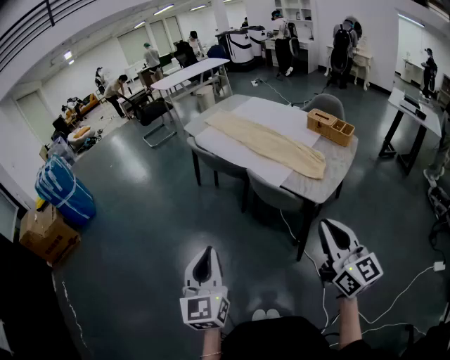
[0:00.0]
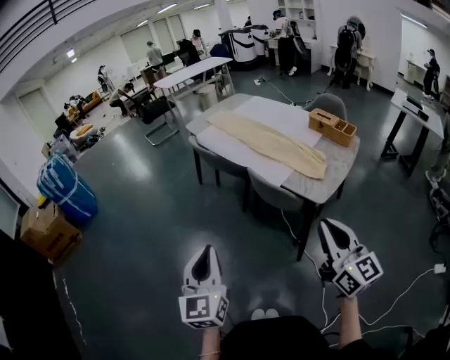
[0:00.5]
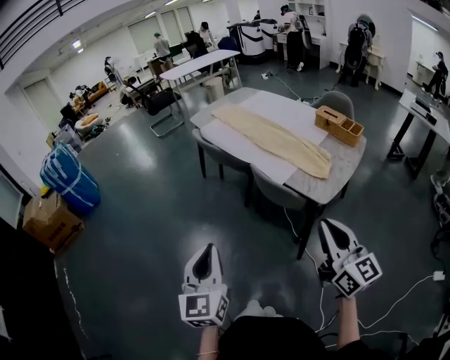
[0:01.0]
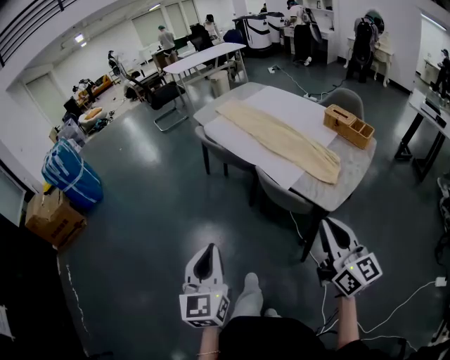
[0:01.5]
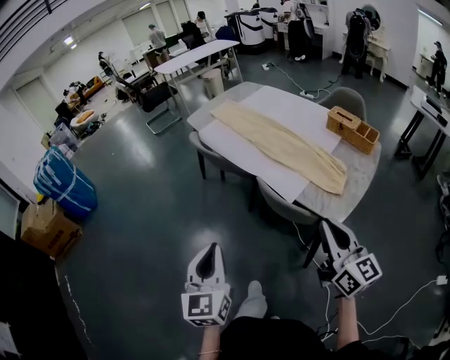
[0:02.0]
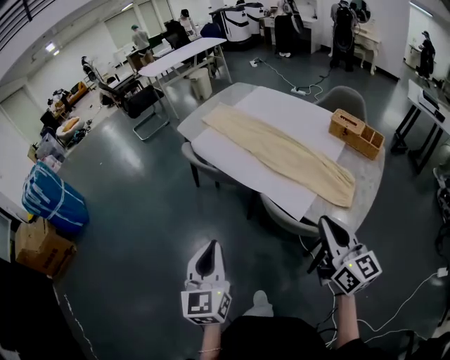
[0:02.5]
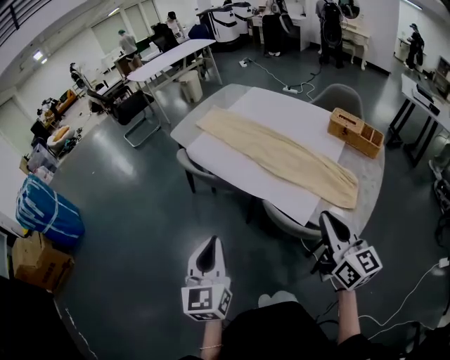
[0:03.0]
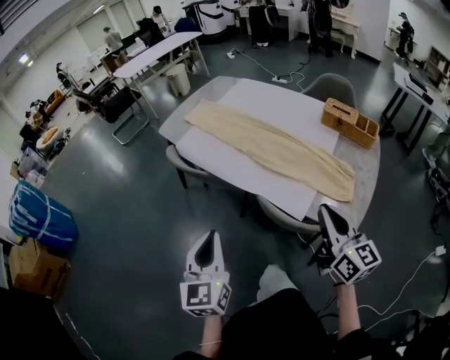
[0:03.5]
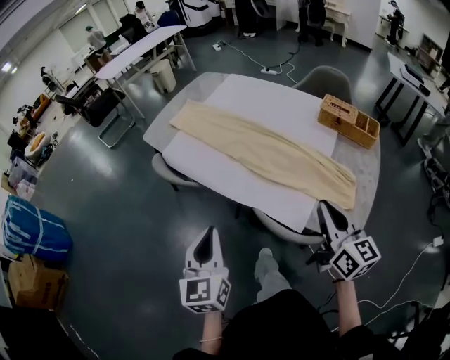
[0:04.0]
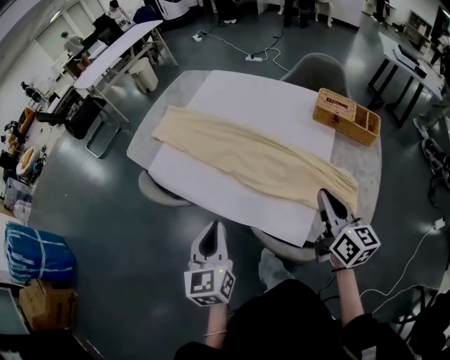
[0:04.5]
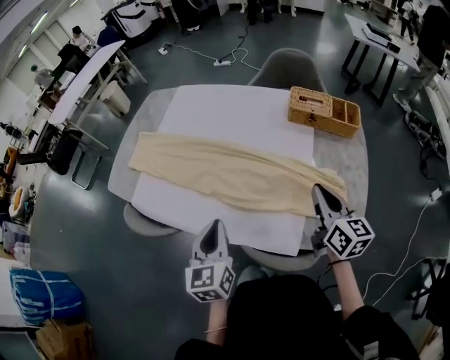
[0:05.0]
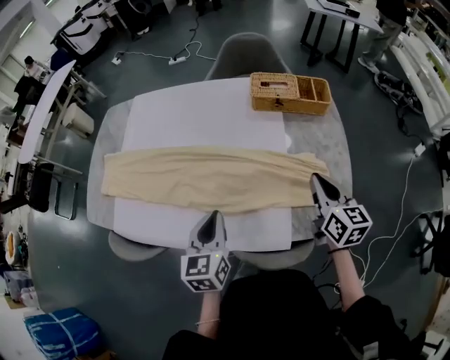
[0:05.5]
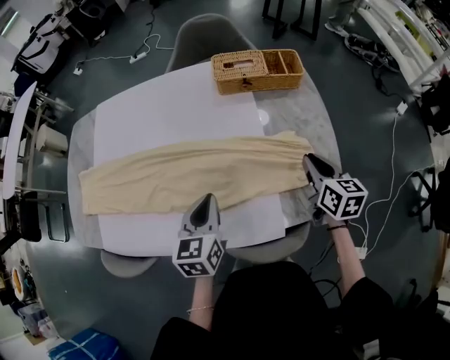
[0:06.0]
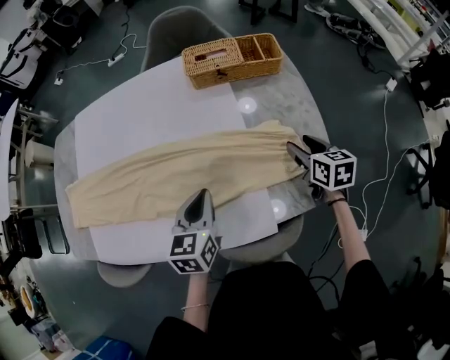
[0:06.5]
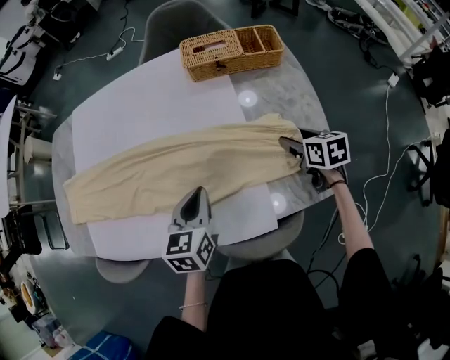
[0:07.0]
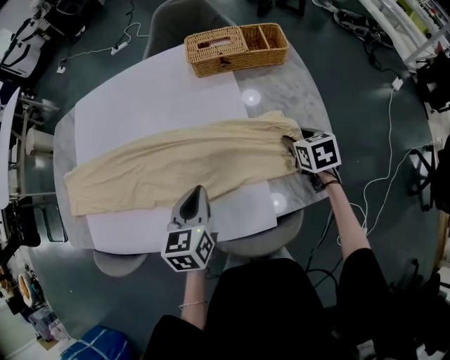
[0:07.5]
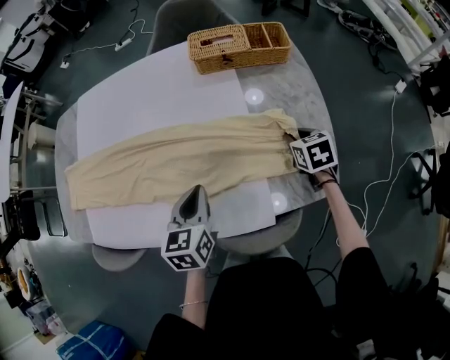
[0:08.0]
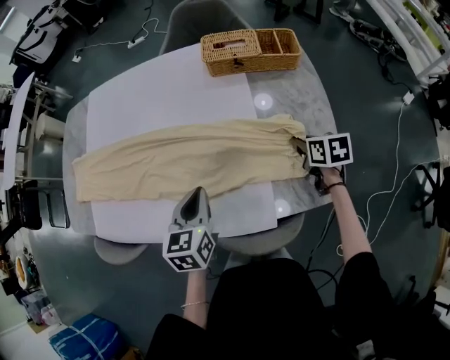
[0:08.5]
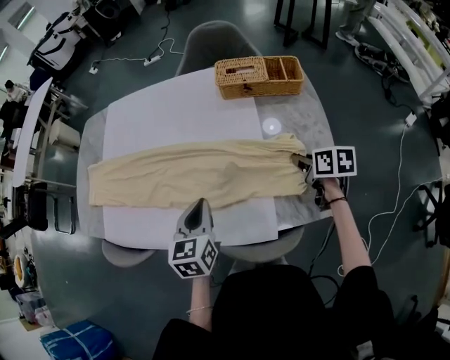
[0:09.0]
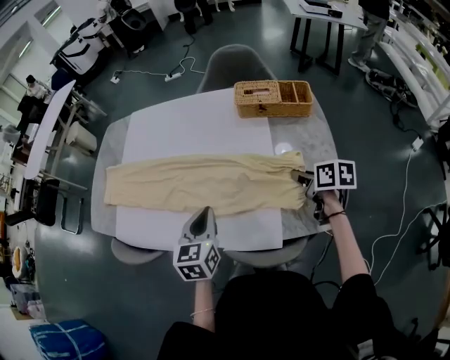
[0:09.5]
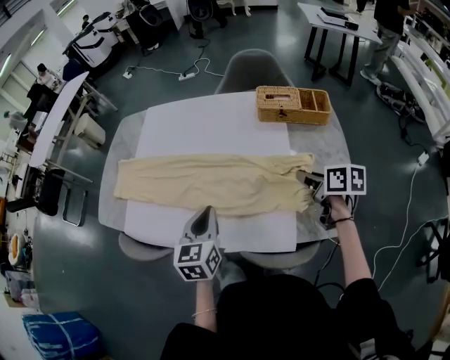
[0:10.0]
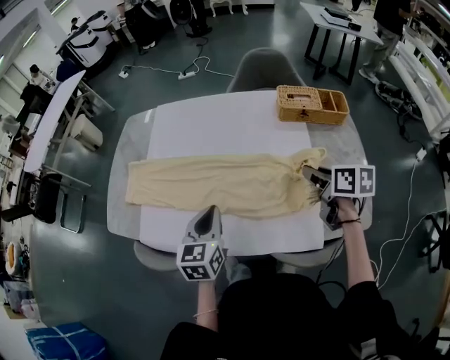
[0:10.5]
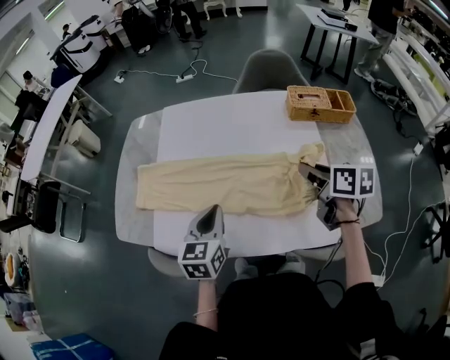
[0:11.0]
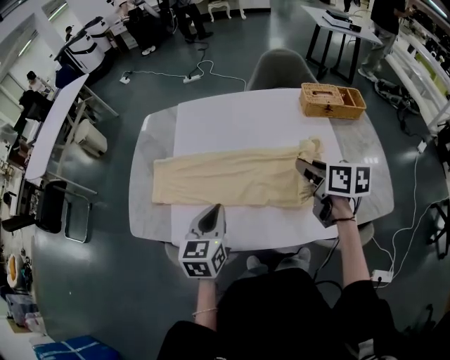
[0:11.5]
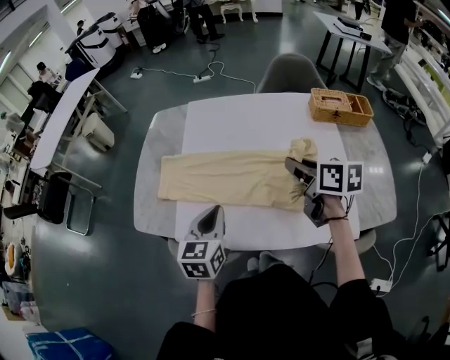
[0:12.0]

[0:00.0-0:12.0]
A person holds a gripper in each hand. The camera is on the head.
0:00.0 to 0:02.0: Both grippers travel together forward, about 15 cm.
0:02.0 to 0:04.0: The grippers both shift forward by roughly 25 cm.
0:04.0 to 0:06.0: The right gripper moves some 25 cm, and swivels about 50 degrees; the left gripper moves approximately 35 cm, and rotates approximately 50 degrees.
0:06.0 to 0:08.0: The right gripper shifts about 10 cm downward, rotates roughly 30 degrees, and opens, then closes once more.
0:08.0 to 0:10.0: The left gripper goes roughly 15 cm to the left and upward; the right gripper travels upward and to the left by roughly 20 cm, and turns by about 40 degrees.
0:10.0 to 0:12.0: Both grippers travel together to the left, some 30 cm.

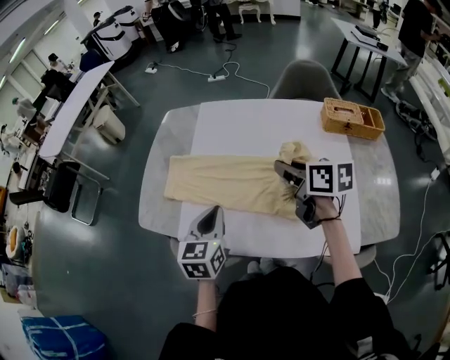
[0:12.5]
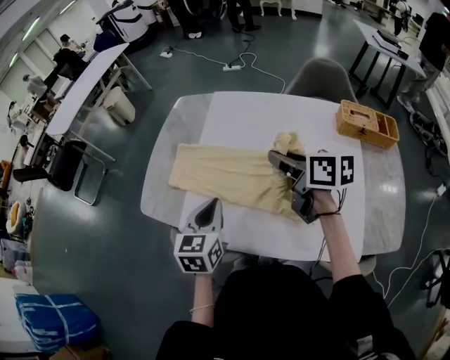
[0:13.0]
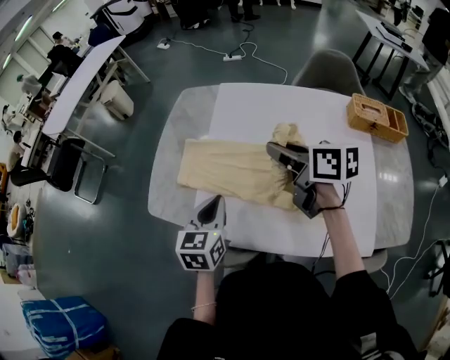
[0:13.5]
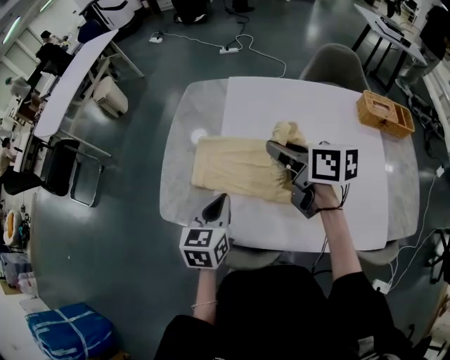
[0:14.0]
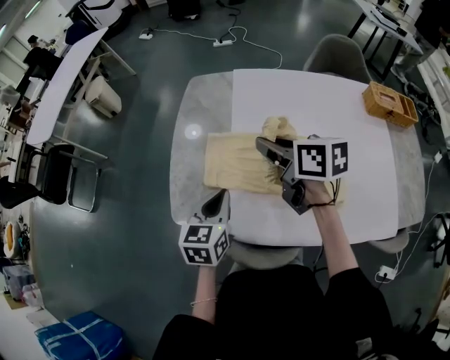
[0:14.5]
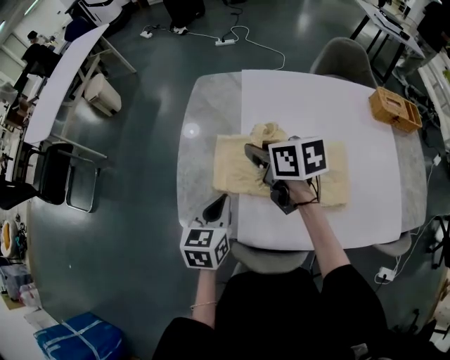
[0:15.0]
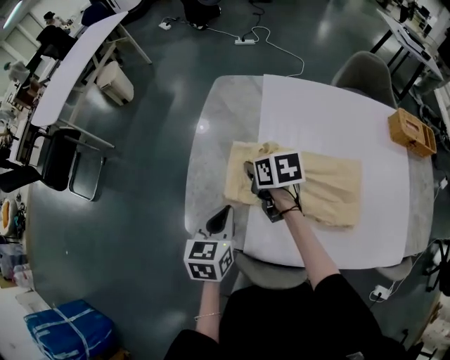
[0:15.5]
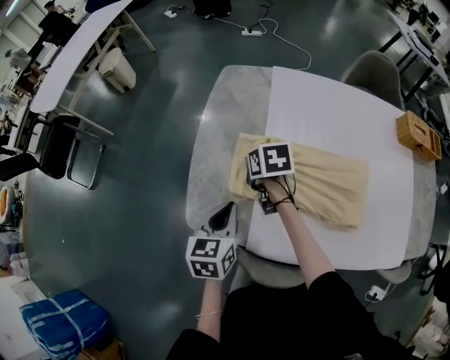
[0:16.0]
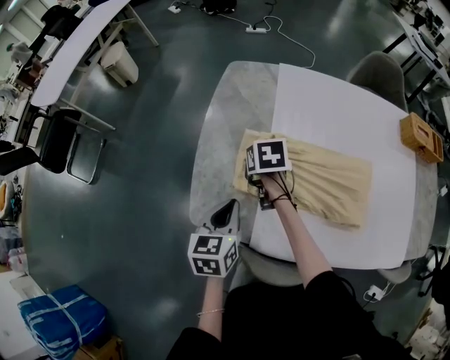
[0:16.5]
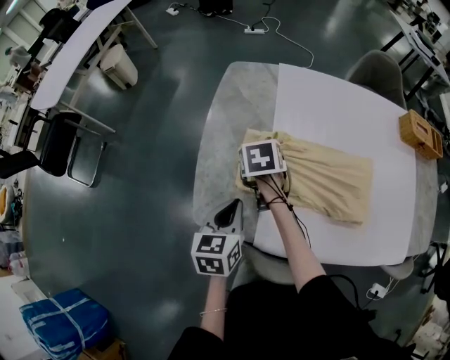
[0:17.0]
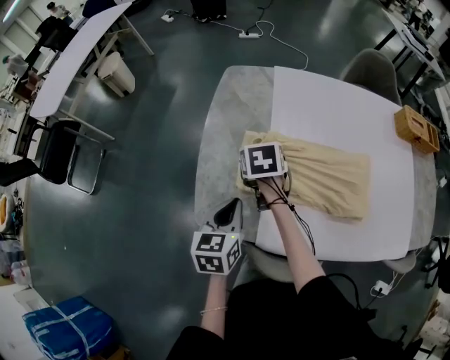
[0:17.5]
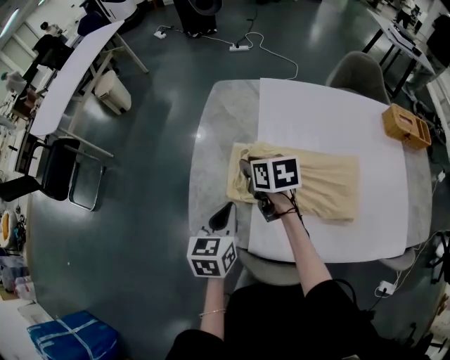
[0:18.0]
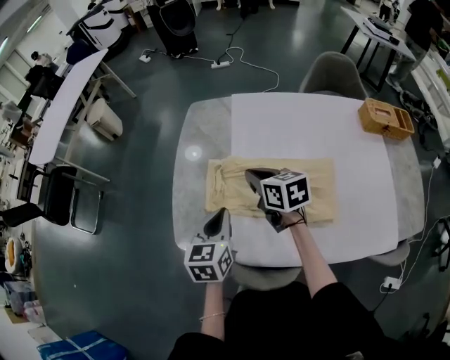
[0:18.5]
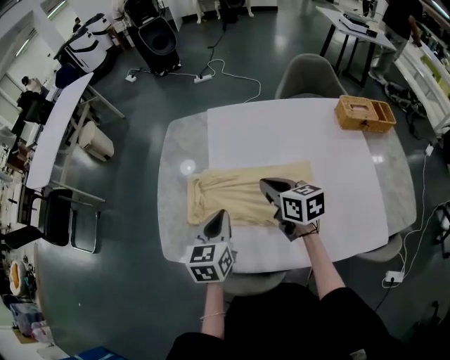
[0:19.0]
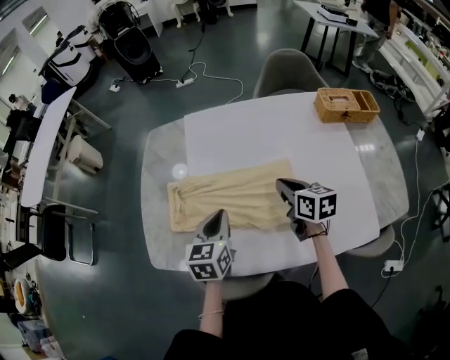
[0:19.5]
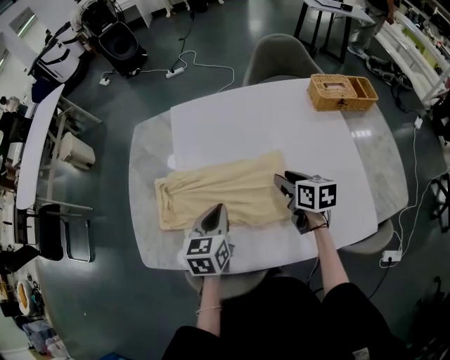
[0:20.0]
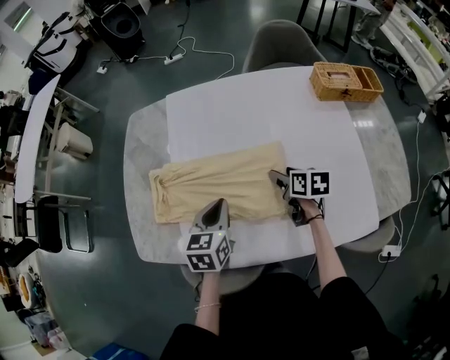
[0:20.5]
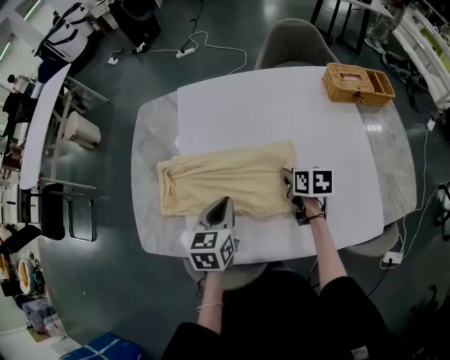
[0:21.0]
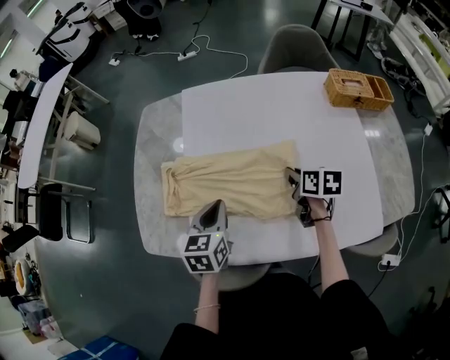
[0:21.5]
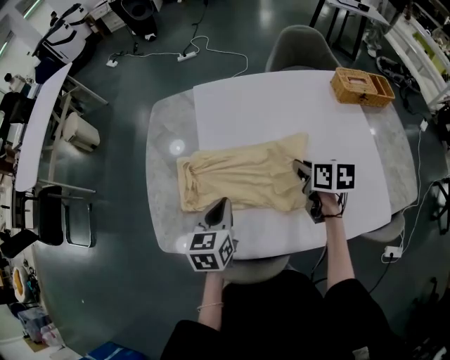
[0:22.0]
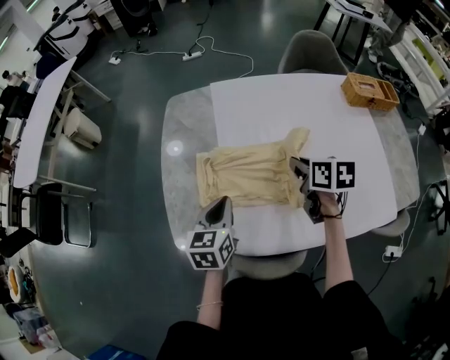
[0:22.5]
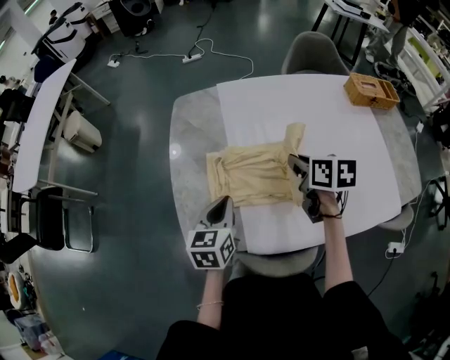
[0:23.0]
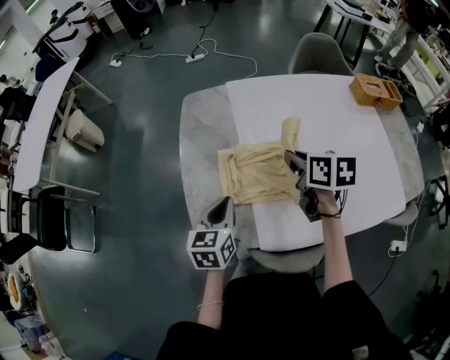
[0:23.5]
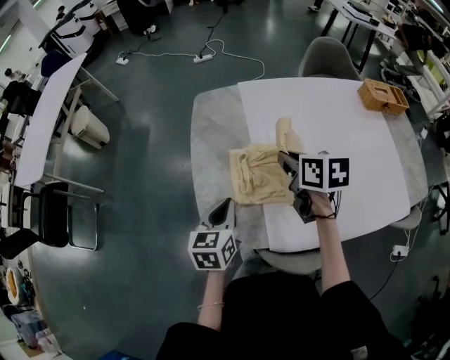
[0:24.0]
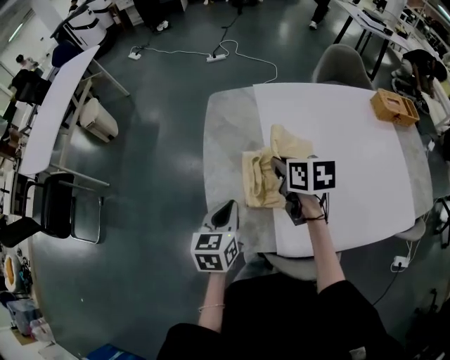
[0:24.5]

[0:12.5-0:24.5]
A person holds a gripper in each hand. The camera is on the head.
0:12.5 to 0:14.5: The grippers both shift to the left and forward by about 25 cm.
0:14.5 to 0:16.5: The right gripper heads downward, to the left and forward, covering approximately 25 cm, and angles its fingers downward, by approximately 40 degrees. The left gripper moves to the left and downward, some 10 cm.
0:16.5 to 0:18.5: The right gripper heads upward and to the right, covering about 15 cm, rotates about 30 degrees, and opens, then closes again. Meanwhile the left gripper heads to the right and upward, covering some 10 cm.
0:18.5 to 0:20.5: The right gripper goes about 35 cm to the right and downward, swivels roughly 30 degrees, and opens its fingers, while the left gripper goes some 20 cm to the right.
0:20.5 to 0:22.5: The left gripper travels to the left by about 15 cm; the right gripper moves to the left and upward, approximately 20 cm, and closes.
0:22.5 to 0:24.5: The left gripper moves to the left, roughly 15 cm; the right gripper travels to the left by roughly 20 cm.

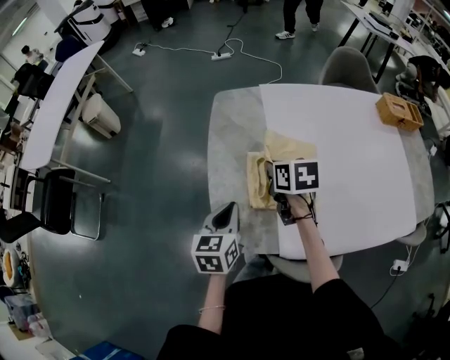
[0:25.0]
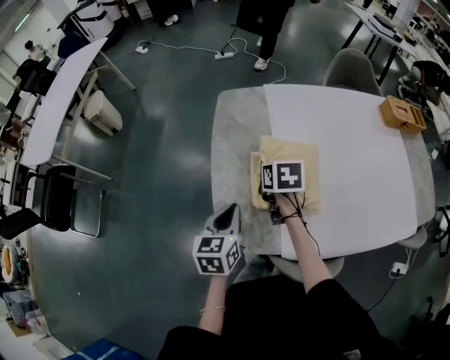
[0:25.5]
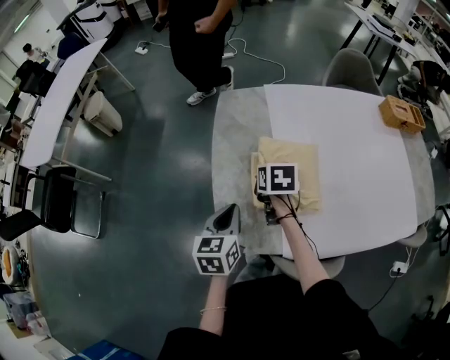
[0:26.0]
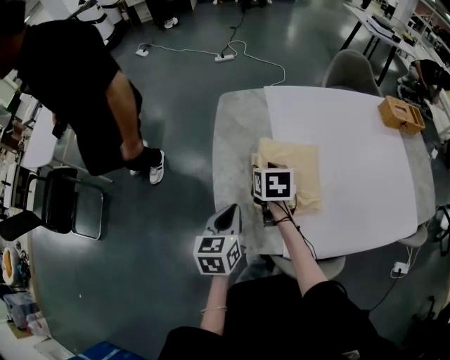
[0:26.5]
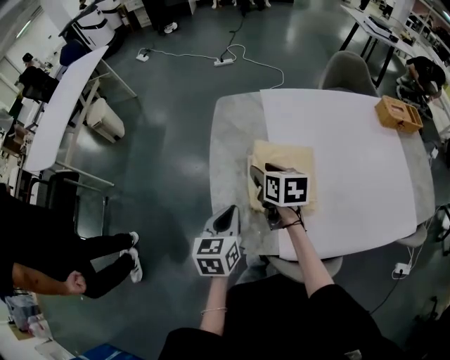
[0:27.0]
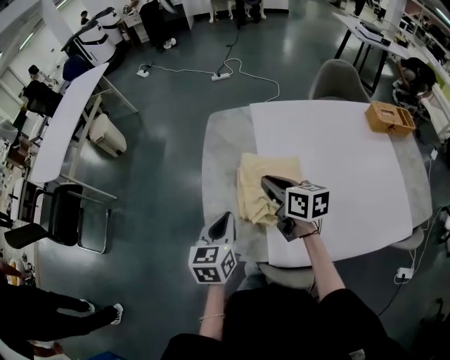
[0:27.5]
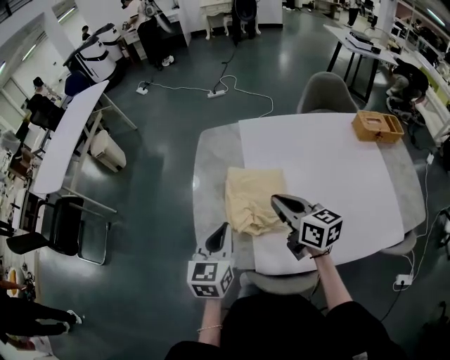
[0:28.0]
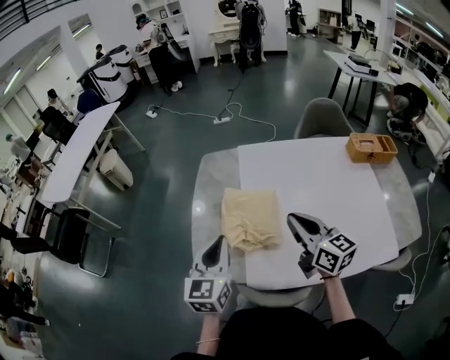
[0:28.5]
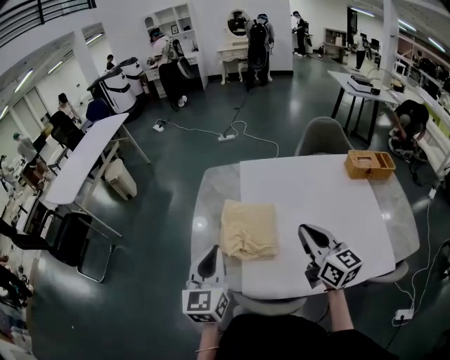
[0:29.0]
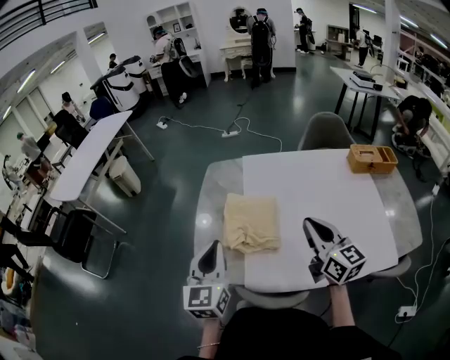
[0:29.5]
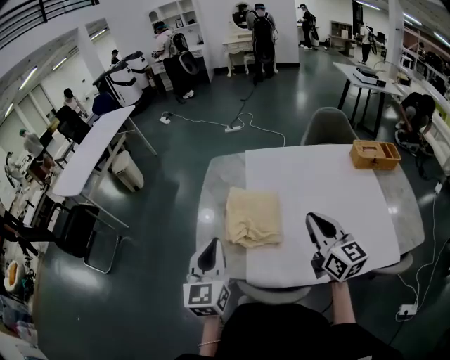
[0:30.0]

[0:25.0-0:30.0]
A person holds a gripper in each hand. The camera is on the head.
0:25.0 to 0:27.5: The right gripper heads upward, covering roughly 5 cm, changes its angle by approximately 20 degrees, and opens, then closes once more. Meanwhile the left gripper ends up roughly 5 cm from where it was.
0:27.5 to 0:30.0: The left gripper goes some 15 cm upward and backward, and changes its angle by about 30 degrees. The right gripper is displaced to the right, backward and upward by approximately 25 cm, and rotates roughly 30 degrees.
